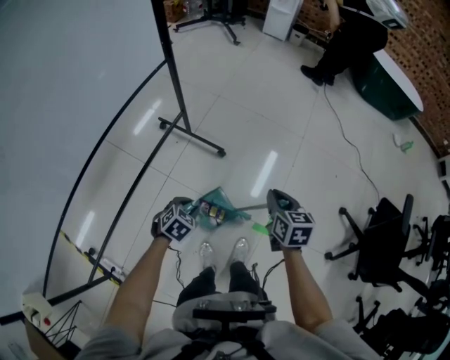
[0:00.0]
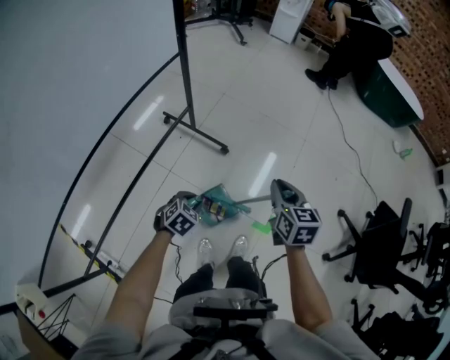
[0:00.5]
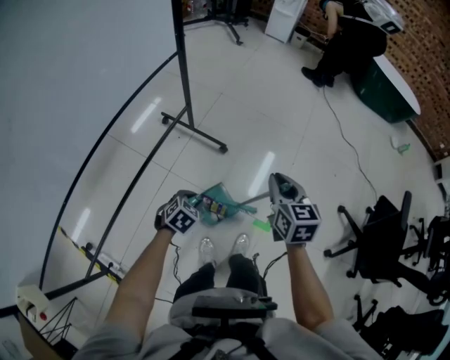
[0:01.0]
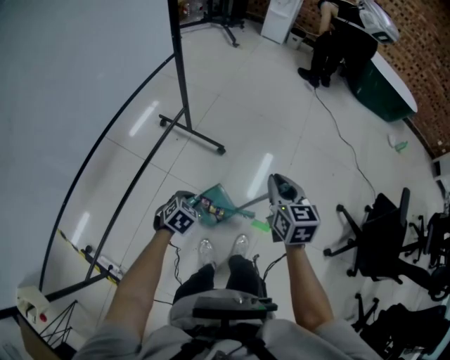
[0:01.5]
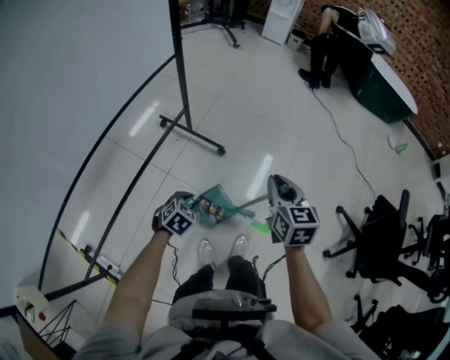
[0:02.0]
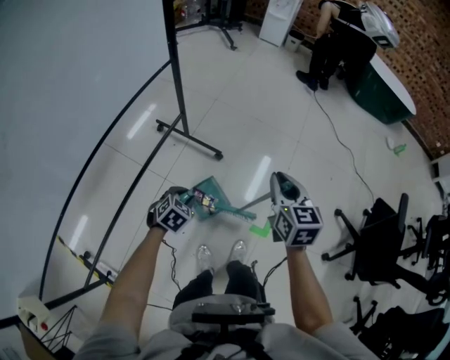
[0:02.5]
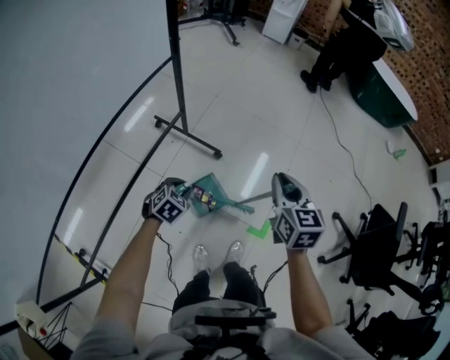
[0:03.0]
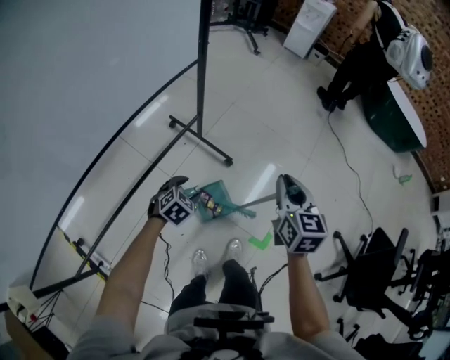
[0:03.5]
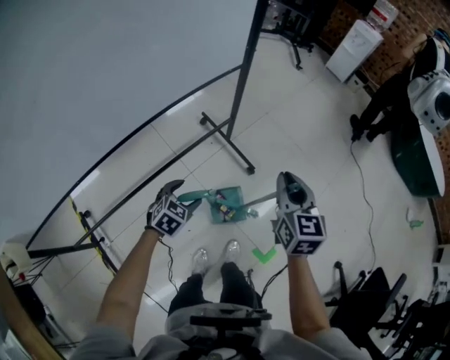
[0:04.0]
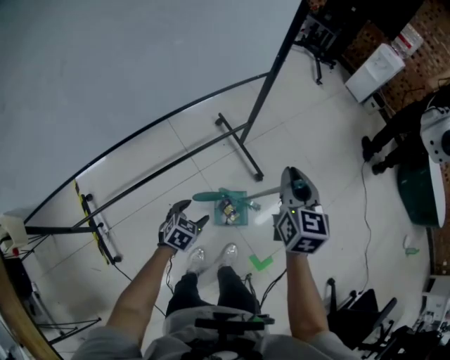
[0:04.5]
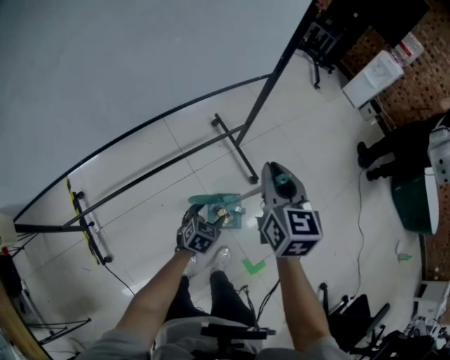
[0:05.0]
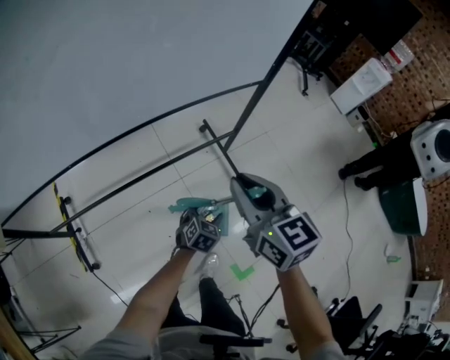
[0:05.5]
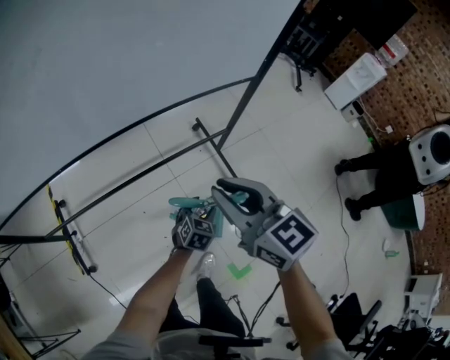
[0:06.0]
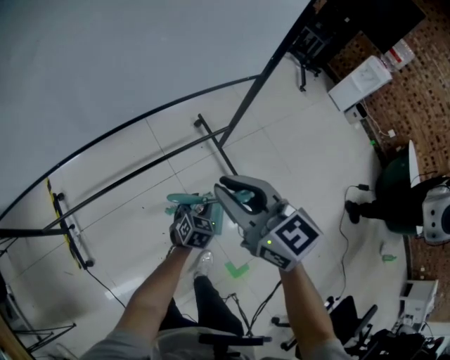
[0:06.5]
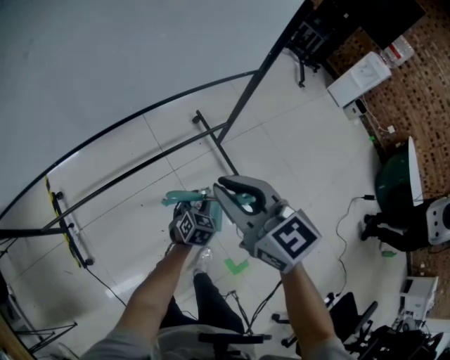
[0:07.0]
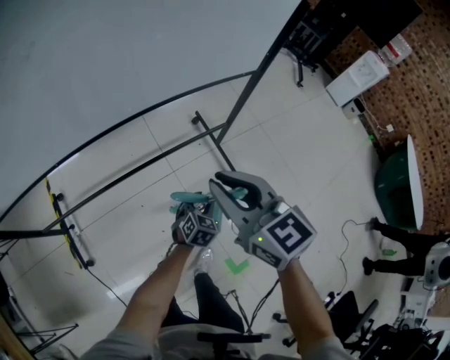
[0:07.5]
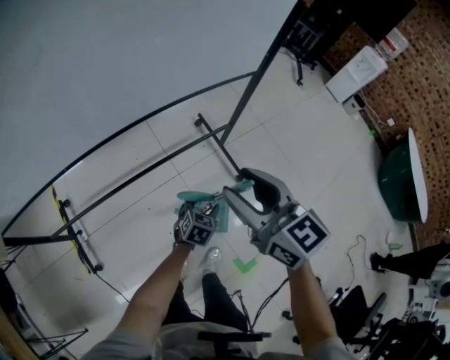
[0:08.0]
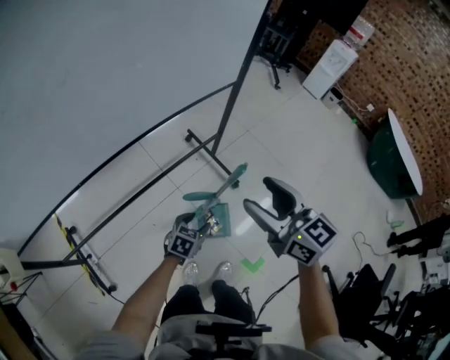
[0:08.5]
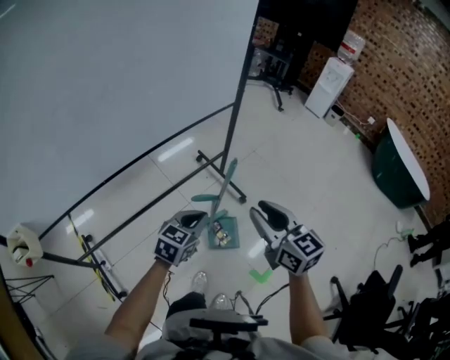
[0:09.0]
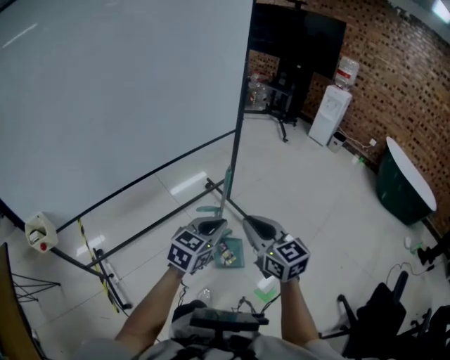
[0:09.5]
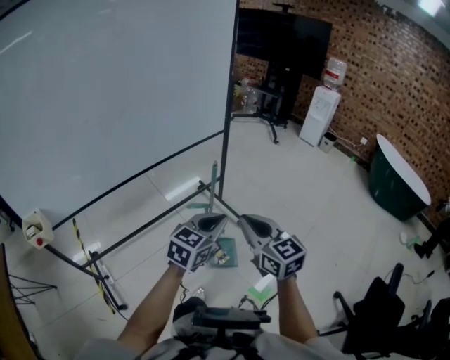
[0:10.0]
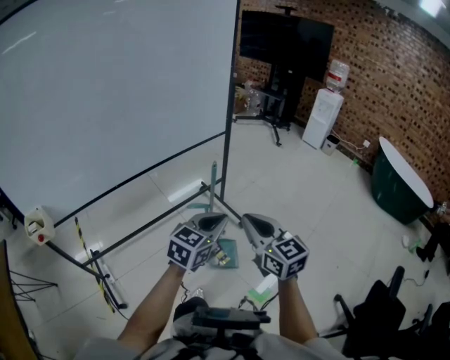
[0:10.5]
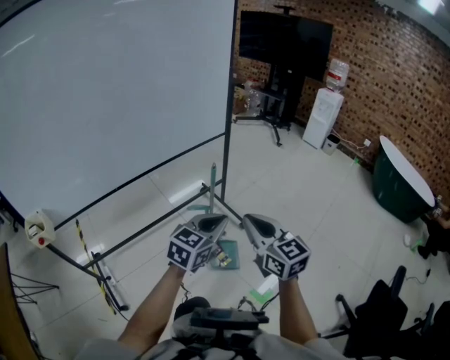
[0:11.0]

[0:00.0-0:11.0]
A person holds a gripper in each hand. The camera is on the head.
0:00.0 to 0:02.0: The right gripper goes roughly 10 cm upward.
0:02.0 to 0:03.5: The right gripper goes some 10 cm forward; the left gripper is displaced forward and to the left by some 10 cm, and opens its fingers.
0:03.5 to 0:05.5: The right gripper shifts by roughly 25 cm, and rotates roughly 50 degrees, while the left gripper rotates some 40 degrees.
0:05.5 to 0:07.5: The left gripper closes.
0:07.5 to 0:09.0: The left gripper goes about 25 cm upward and backward, turns by some 30 degrees, and closes. Meanwhile the right gripper moves backward and to the right, some 15 cm, rotates some 20 degrees, and opens, then closes once more.
0:09.0 to 0:11.0: The right gripper travels backward by some 10 cm, and closes. The left gripper moves upward, to the right and backward, some 20 cm.

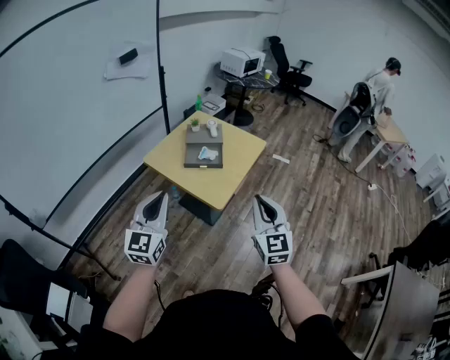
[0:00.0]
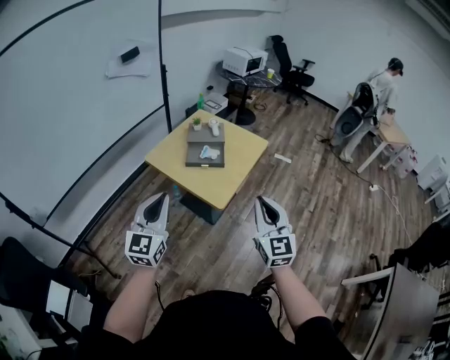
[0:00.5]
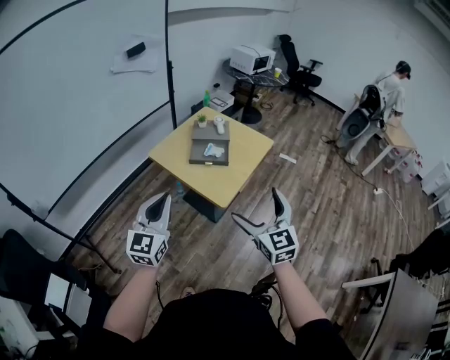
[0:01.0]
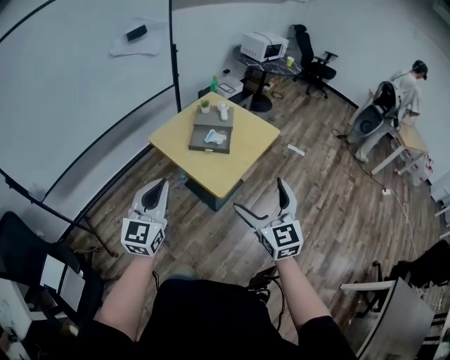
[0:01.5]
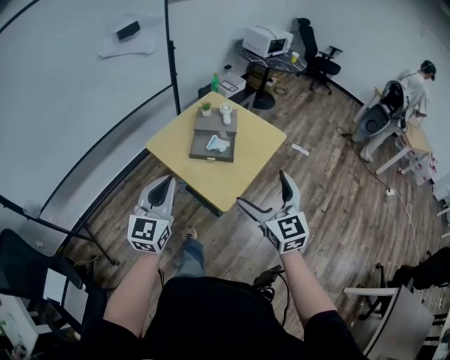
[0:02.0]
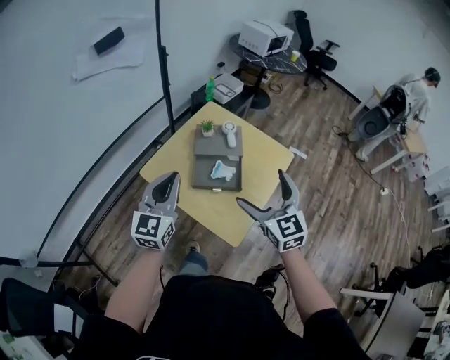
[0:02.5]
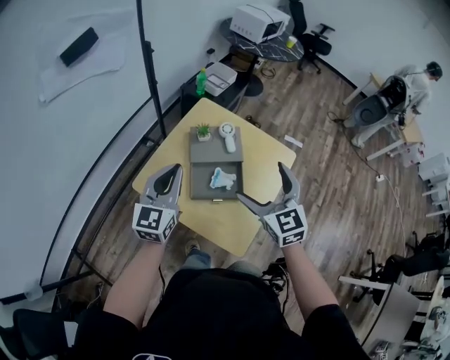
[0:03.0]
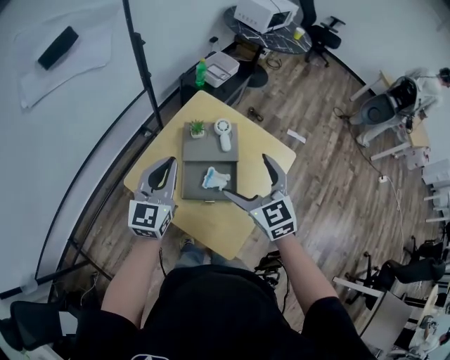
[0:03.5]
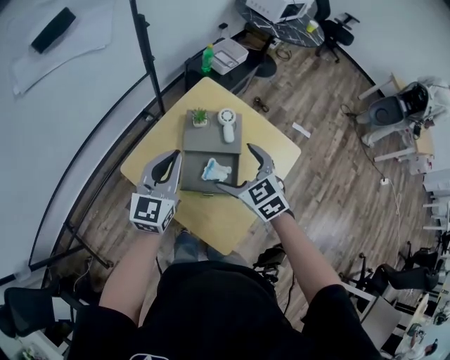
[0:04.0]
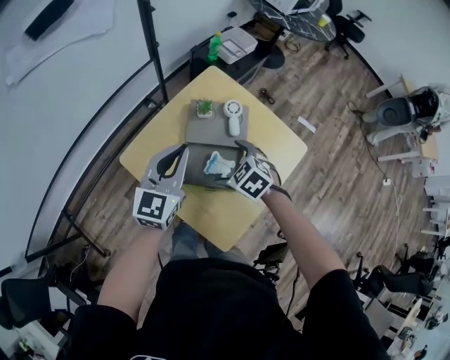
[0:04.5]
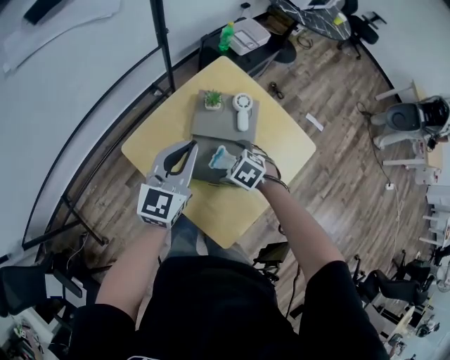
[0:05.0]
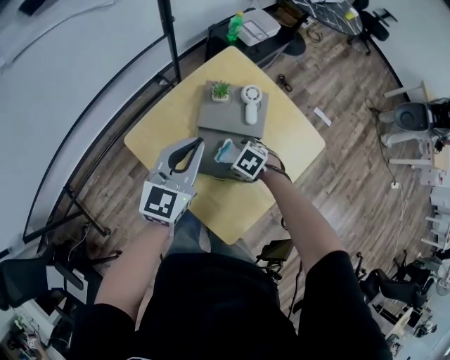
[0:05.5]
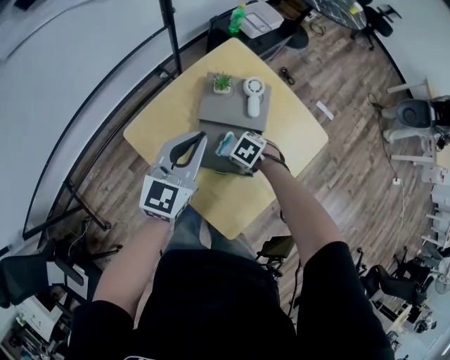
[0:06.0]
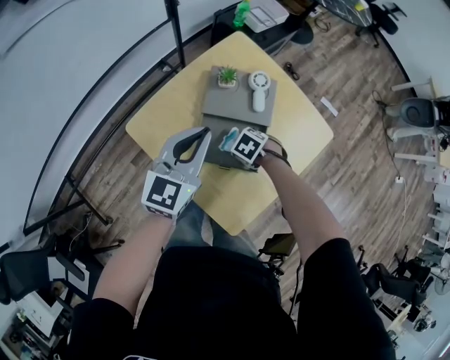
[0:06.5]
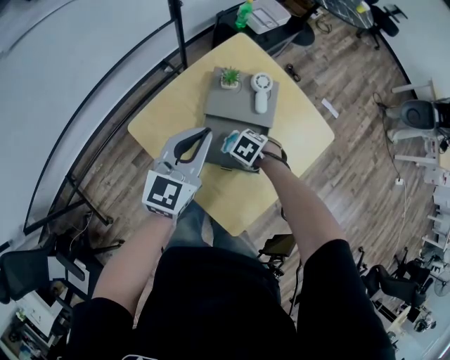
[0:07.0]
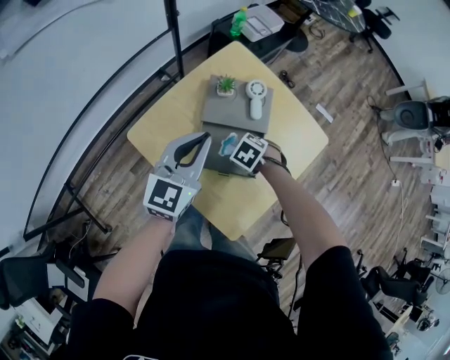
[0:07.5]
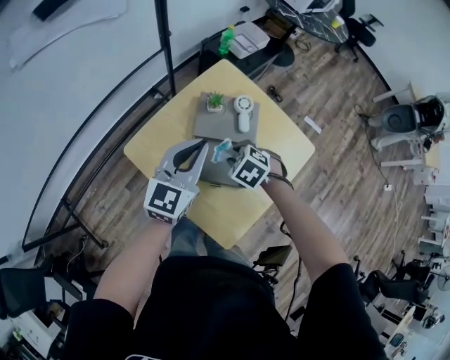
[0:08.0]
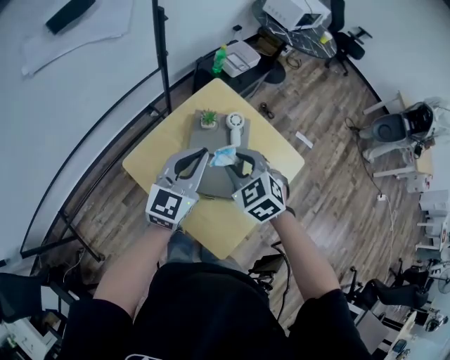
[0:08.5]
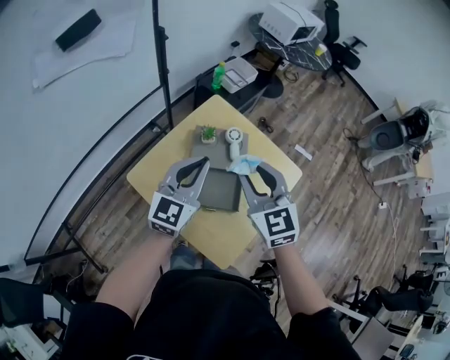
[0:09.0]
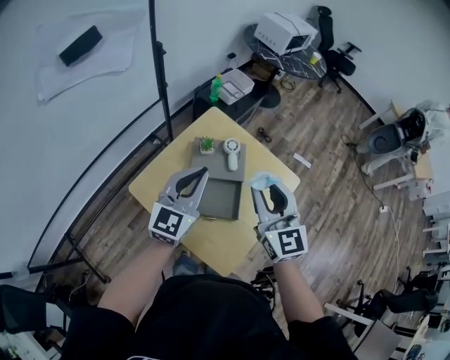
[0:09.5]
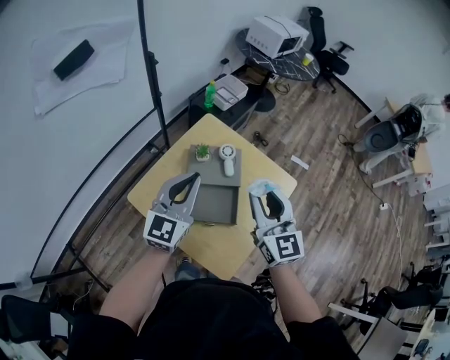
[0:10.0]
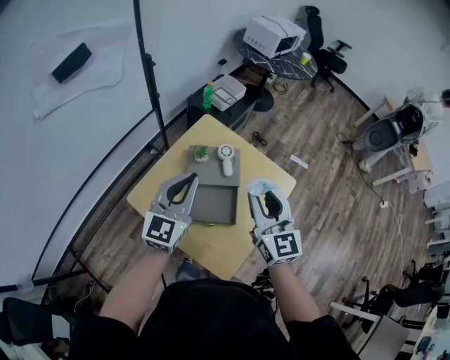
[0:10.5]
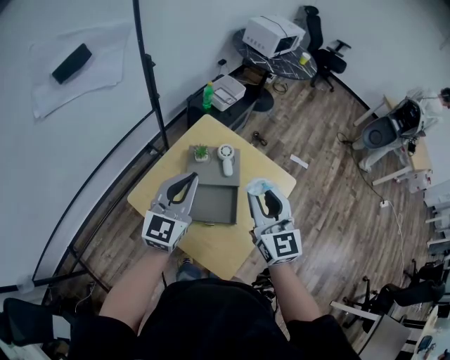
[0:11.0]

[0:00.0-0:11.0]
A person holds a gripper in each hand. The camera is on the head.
0:00.0 to 0:02.0: The left gripper is displaced forward and downward by approximately 15 cm; the right gripper is displaced forward by approximately 15 cm, and opens up.
0:02.0 to 0:03.5: The grippers both shift forward by approximately 35 cm.
0:03.5 to 0:05.5: The left gripper heads downward, covering about 5 cm. Meanwhile the right gripper shifts some 30 cm downward, and tips its fingers downward by approximately 50 degrees.
0:05.5 to 0:07.5: The right gripper closes its fingers.
0:07.5 to 0:09.0: The right gripper travels upward by roughly 35 cm, and angles its fingers upward, by some 60 degrees. The left gripper heads upward, covering about 10 cm.
0:09.0 to 0:11.0: The right gripper is displaced to the right by roughly 5 cm, and swivels about 20 degrees.

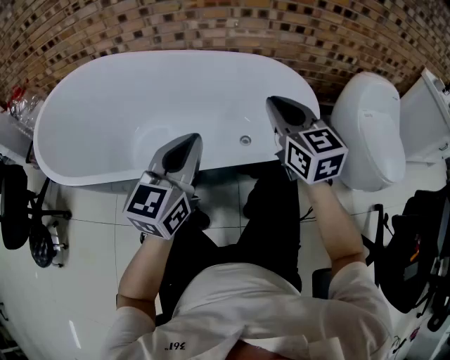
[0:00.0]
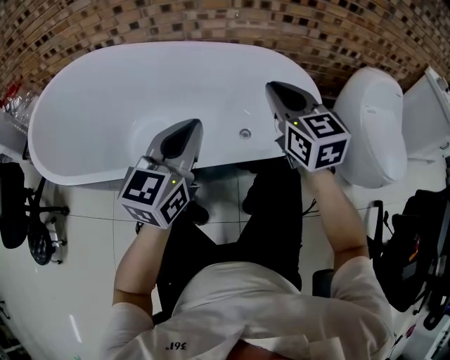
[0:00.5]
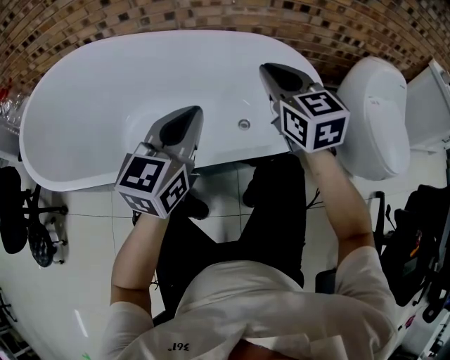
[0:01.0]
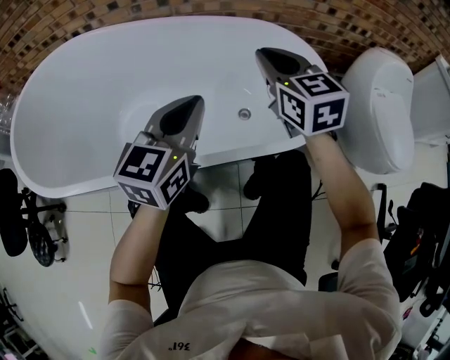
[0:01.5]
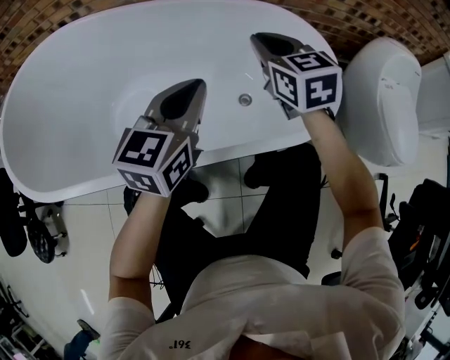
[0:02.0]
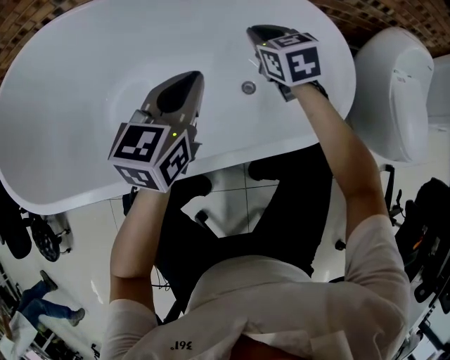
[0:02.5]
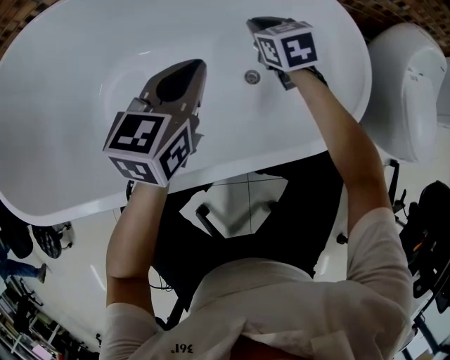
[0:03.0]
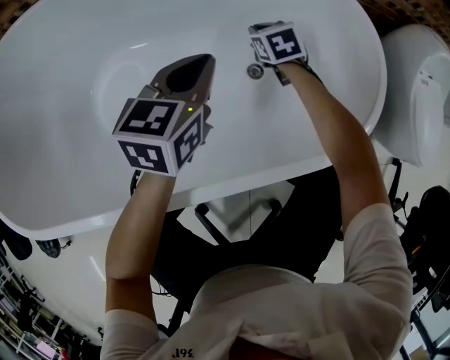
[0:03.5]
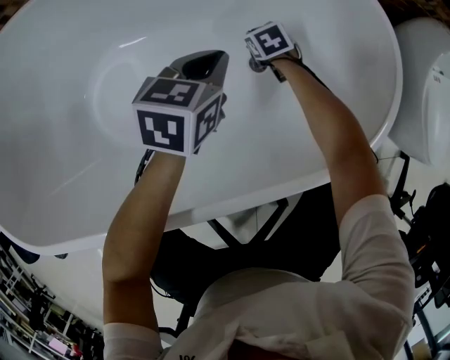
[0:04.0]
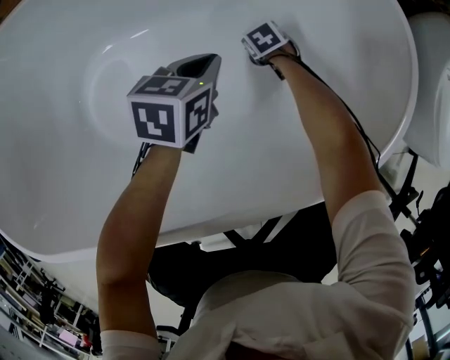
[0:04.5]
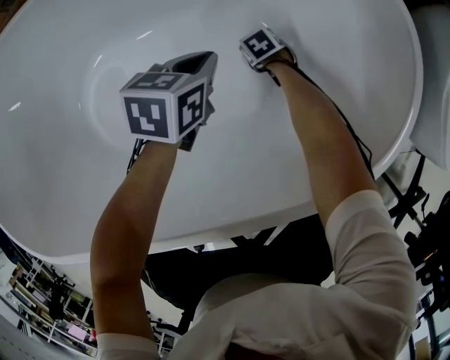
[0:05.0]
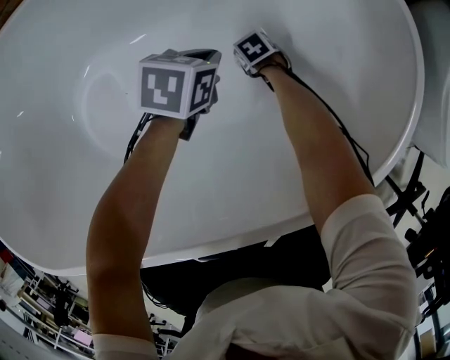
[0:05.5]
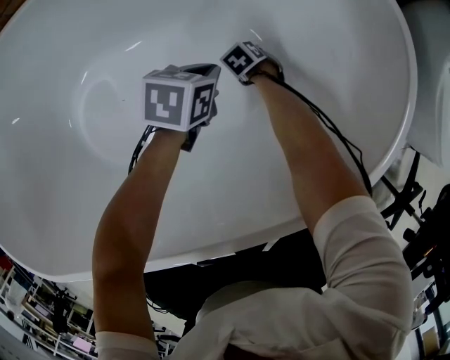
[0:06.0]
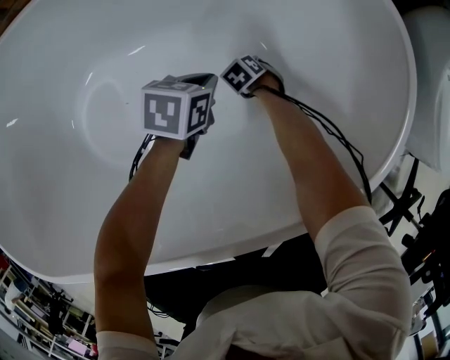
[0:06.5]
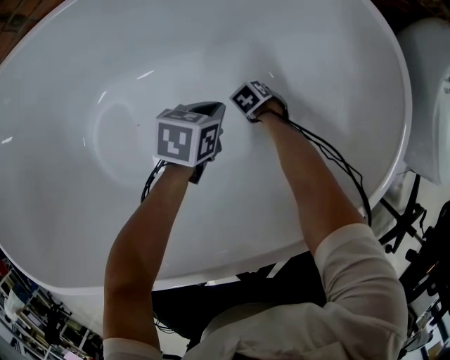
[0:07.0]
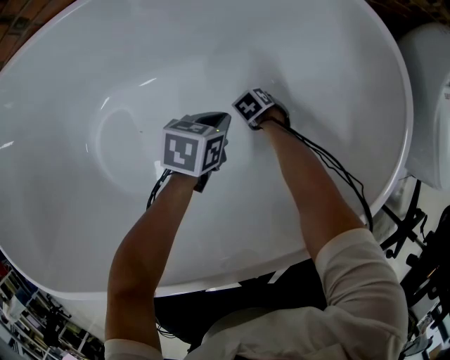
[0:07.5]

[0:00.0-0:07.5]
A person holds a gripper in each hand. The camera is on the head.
0:00.0 to 0:02.0: Both grippers travel together forward and downward, some 20 cm.
0:02.0 to 0:04.0: The left gripper shifts some 25 cm downward and forward, and turns by roughly 30 degrees; the right gripper goes about 40 cm downward, and points its fingers roughly 40 degrees further downward.
0:04.0 to 0:05.5: The two grippers go approximately 15 cm downward. The left gripper swivels some 20 degrees. Meanwhile the right gripper rotates approximately 20 degrees.
